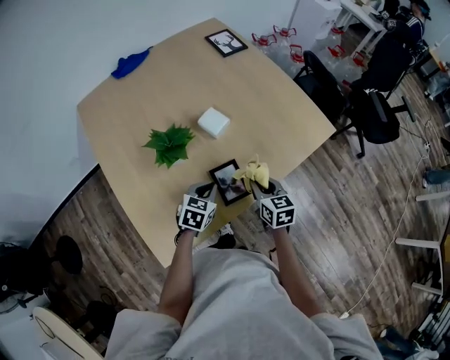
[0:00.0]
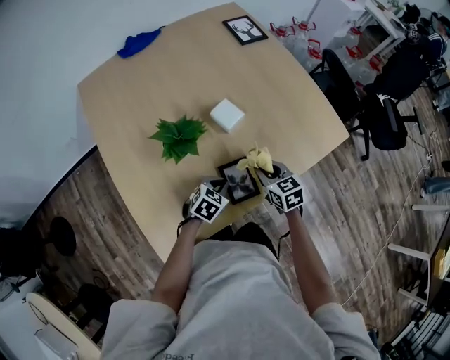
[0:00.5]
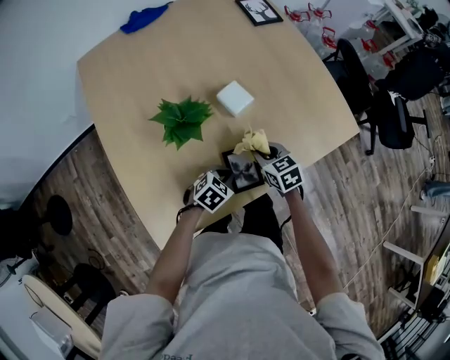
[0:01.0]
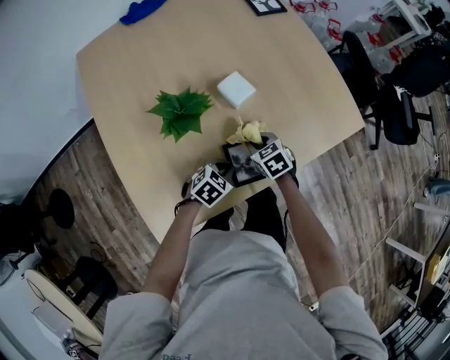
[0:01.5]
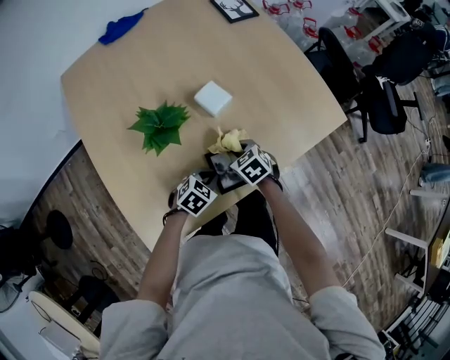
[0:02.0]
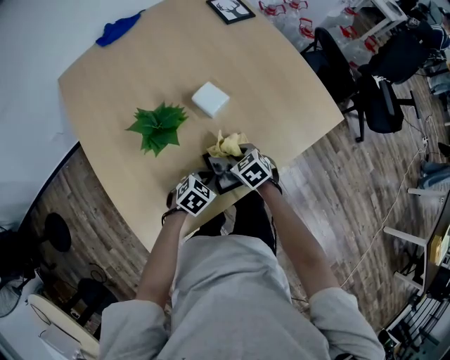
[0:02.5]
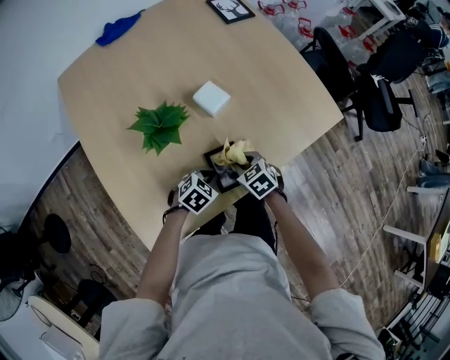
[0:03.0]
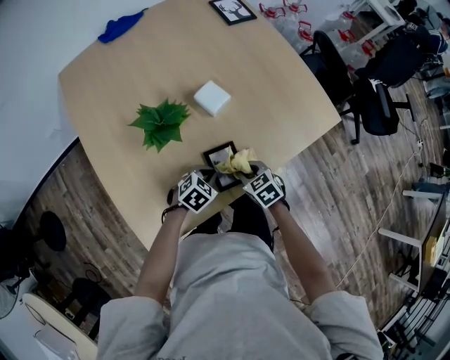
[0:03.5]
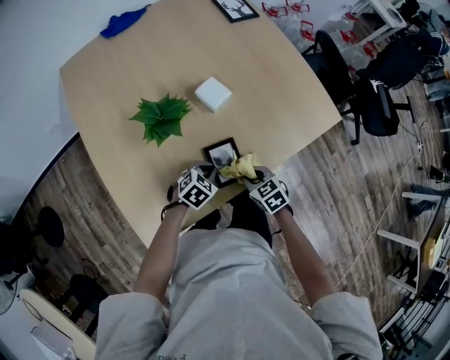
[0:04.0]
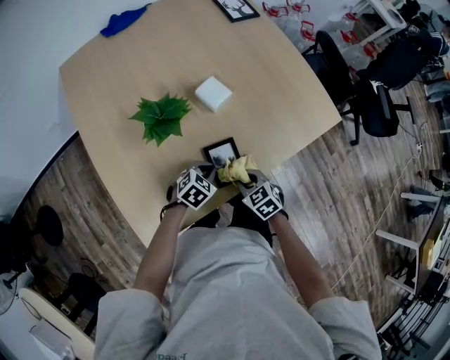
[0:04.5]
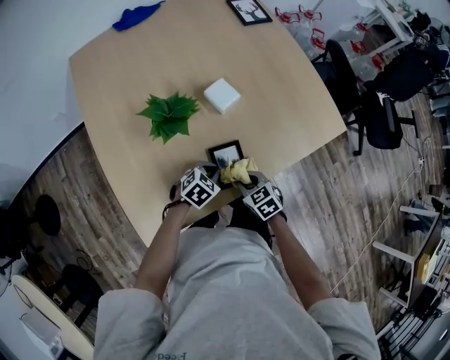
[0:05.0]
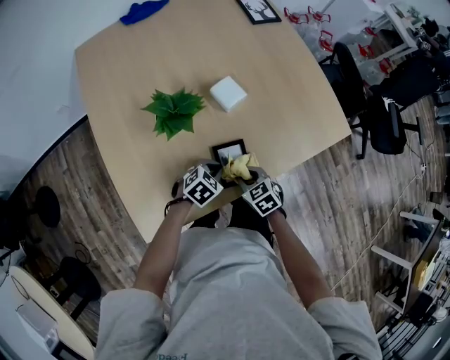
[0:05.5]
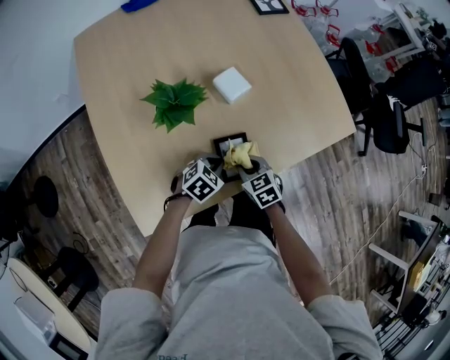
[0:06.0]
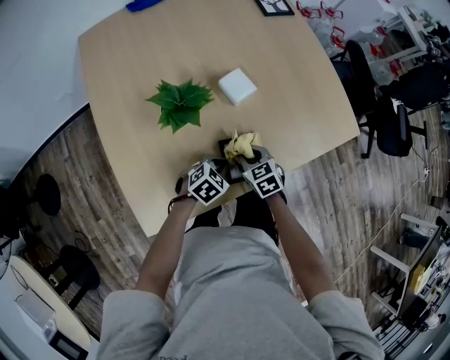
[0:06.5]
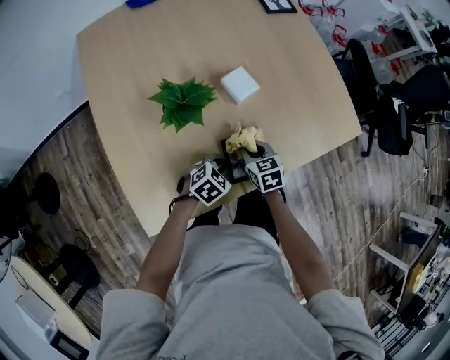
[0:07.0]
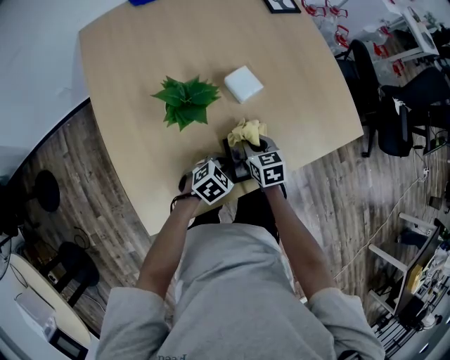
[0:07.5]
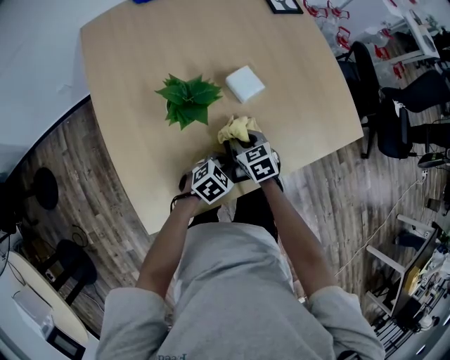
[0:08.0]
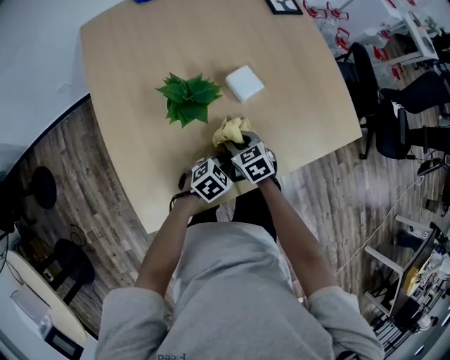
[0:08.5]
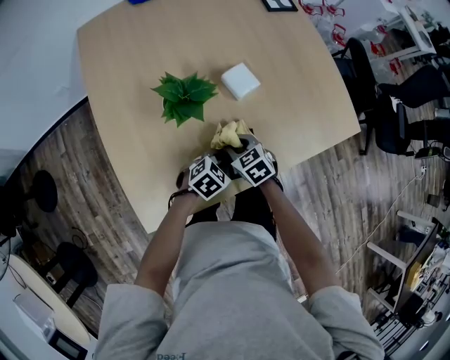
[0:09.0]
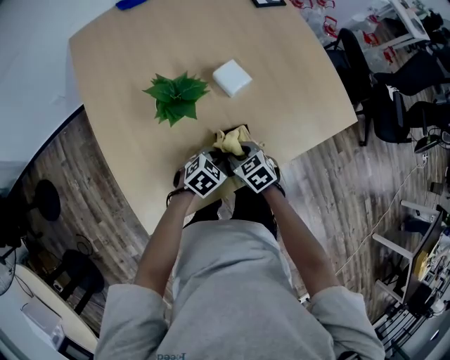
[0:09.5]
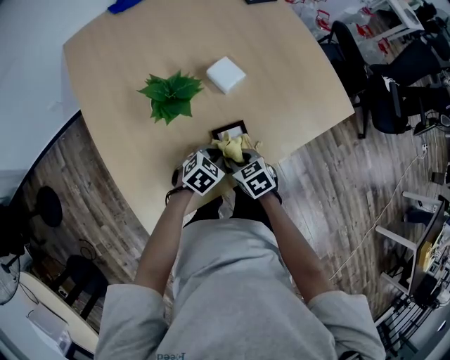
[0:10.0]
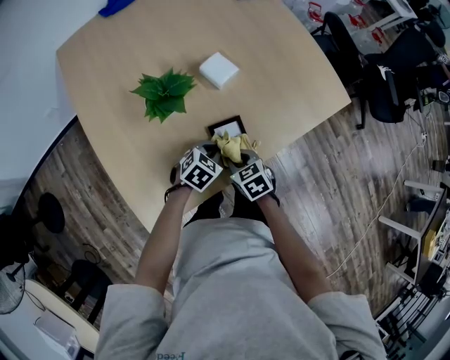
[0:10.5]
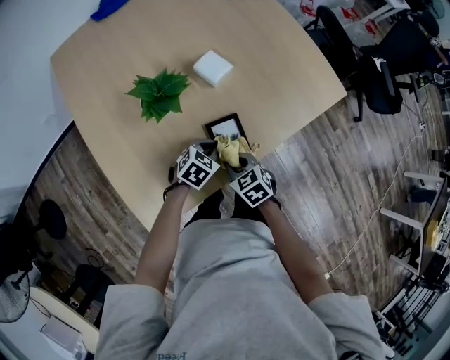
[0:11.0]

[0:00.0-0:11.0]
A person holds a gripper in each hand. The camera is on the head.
0:00.0 to 0:02.0: The right gripper is displaced downward, to the left and forward by about 15 cm, and turns by some 40 degrees, while the left gripper travels downward by about 10 cm, and swivels about 20 degrees.
0:02.0 to 0:03.5: The right gripper heads backward, covering about 5 cm.
0:03.5 to 0:05.5: There are only small adjustments of the grippers.
0:05.5 to 0:07.5: The right gripper travels forward by approximately 10 cm.
0:07.5 to 0:09.0: The right gripper ends up approximately 5 cm from where it was, and turns by roughly 20 degrees.
0:09.0 to 0:11.0: The right gripper moves backward, some 10 cm.

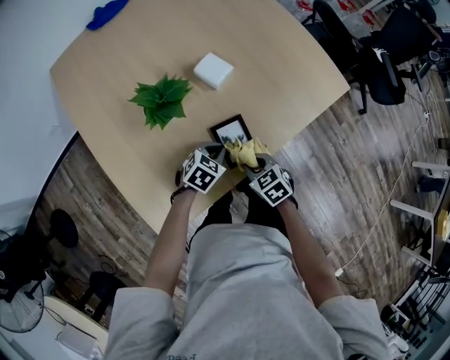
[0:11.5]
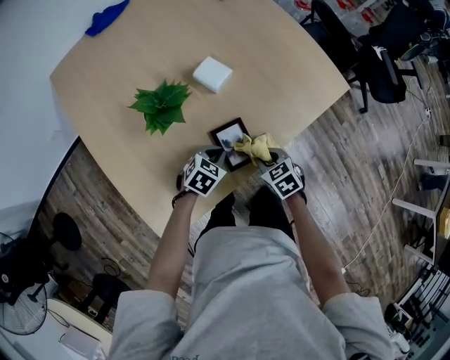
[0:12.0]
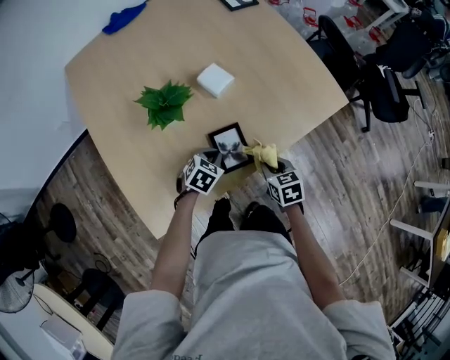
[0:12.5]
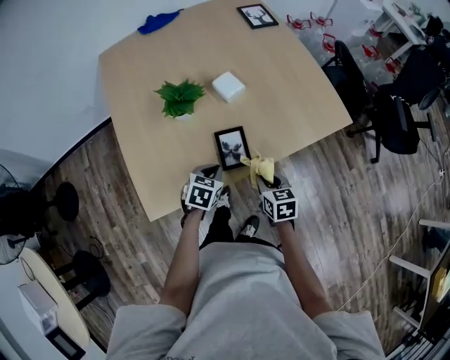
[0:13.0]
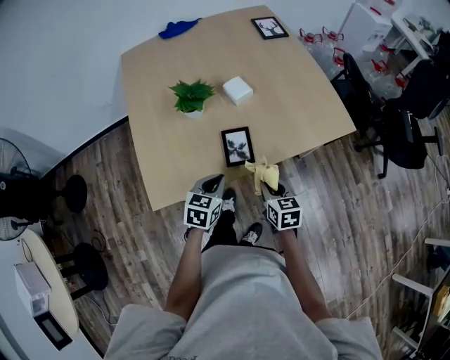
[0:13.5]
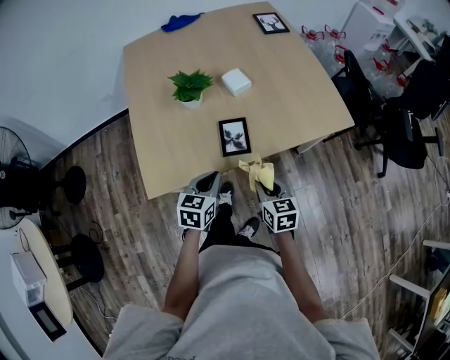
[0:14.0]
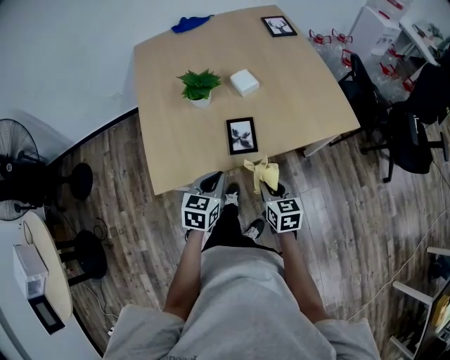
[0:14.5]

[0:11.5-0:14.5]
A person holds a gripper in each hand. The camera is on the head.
0:11.5 to 0:13.0: The right gripper is displaced to the right and upward by about 10 cm, and swivels approximately 20 degrees; the left gripper moves backward and upward, roughly 10 cm, and turns by about 30 degrees.
0:13.0 to 0:14.5: The left gripper moves backward and upward, some 15 cm, and rotates some 20 degrees. Meanwhile the right gripper goes about 10 cm backward.

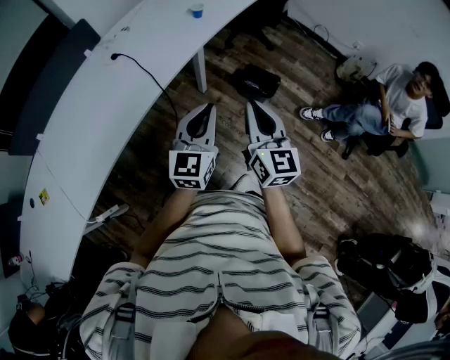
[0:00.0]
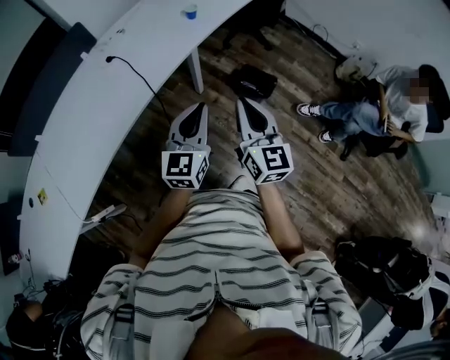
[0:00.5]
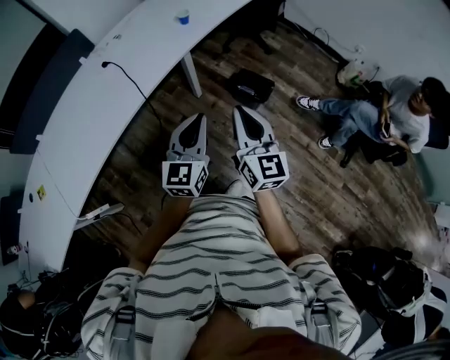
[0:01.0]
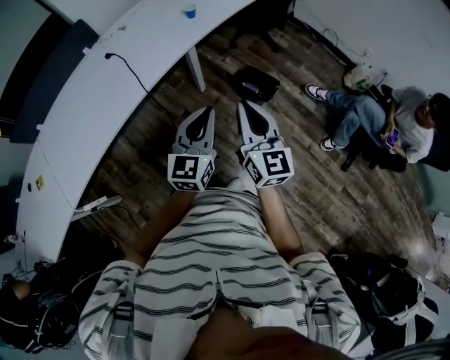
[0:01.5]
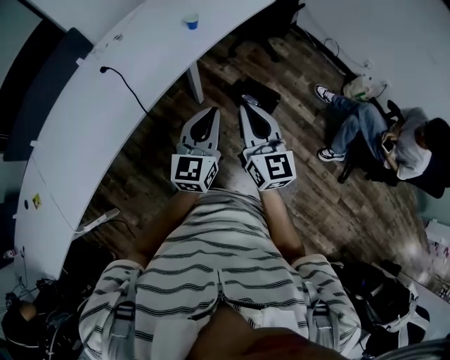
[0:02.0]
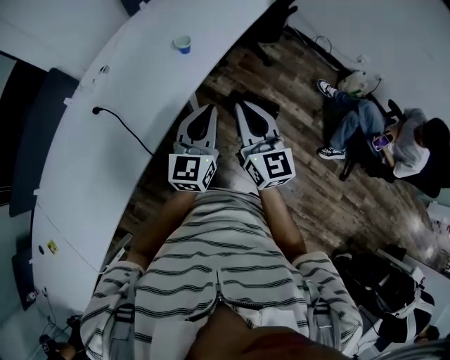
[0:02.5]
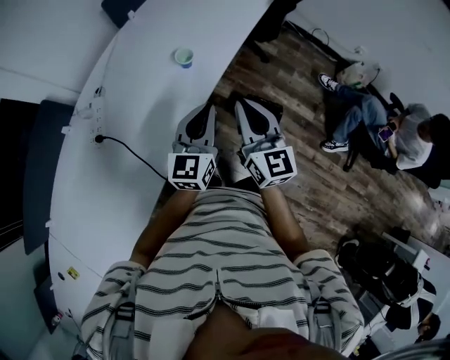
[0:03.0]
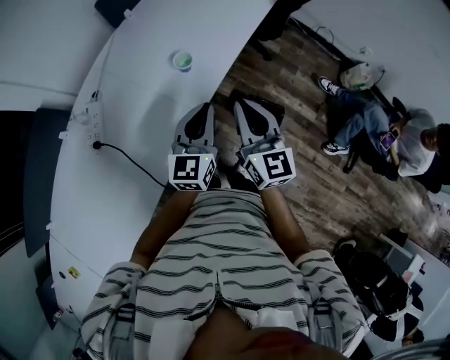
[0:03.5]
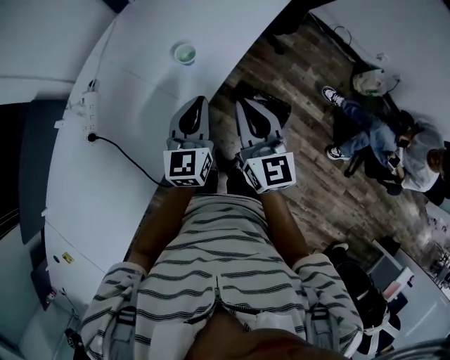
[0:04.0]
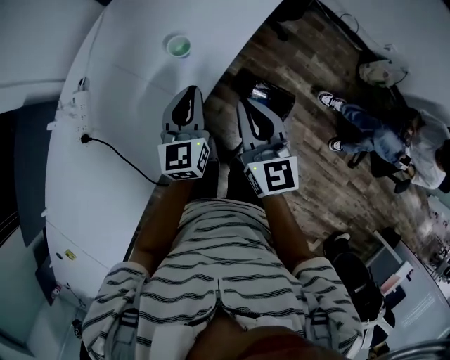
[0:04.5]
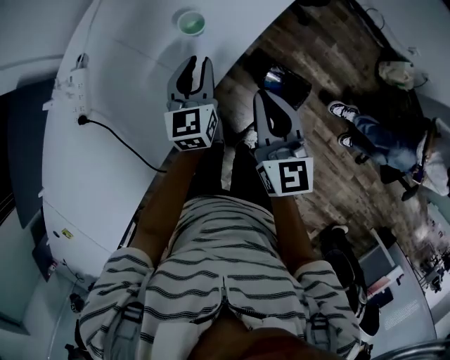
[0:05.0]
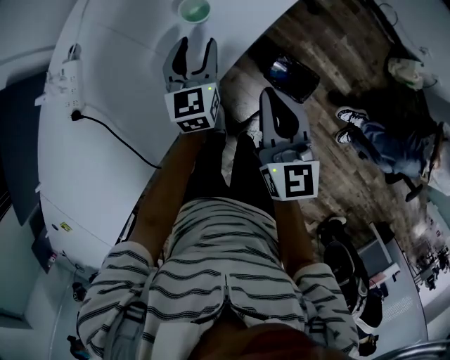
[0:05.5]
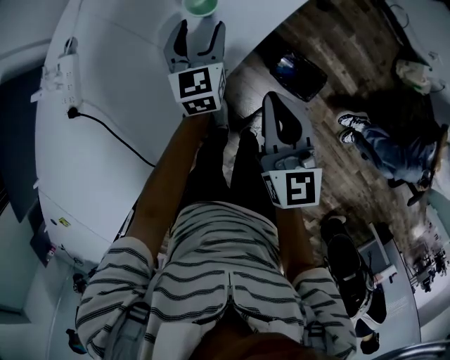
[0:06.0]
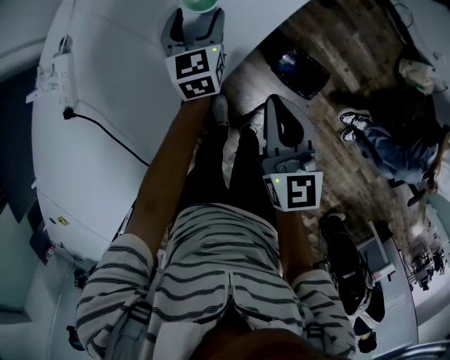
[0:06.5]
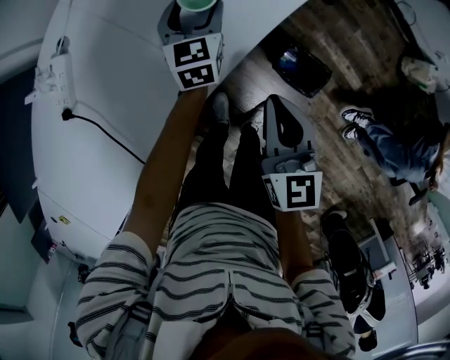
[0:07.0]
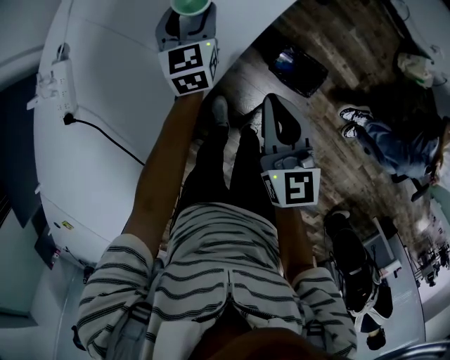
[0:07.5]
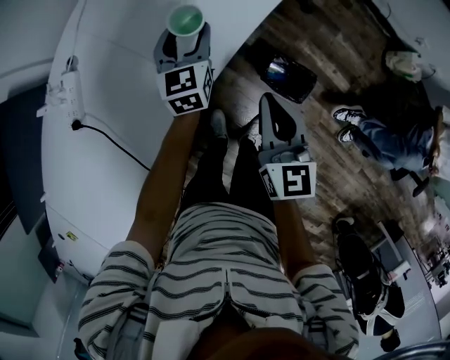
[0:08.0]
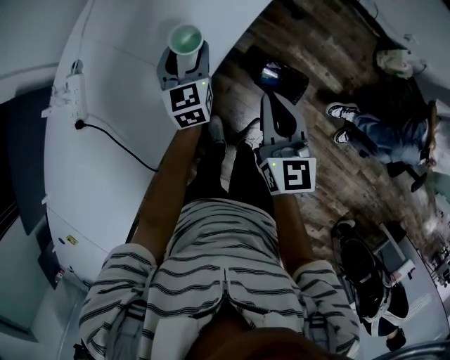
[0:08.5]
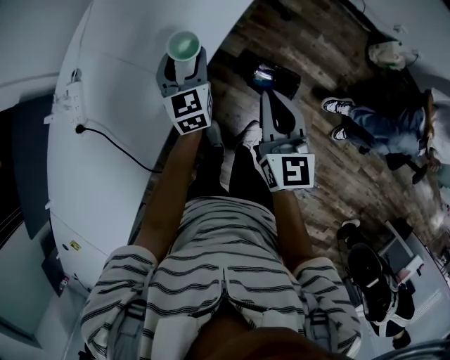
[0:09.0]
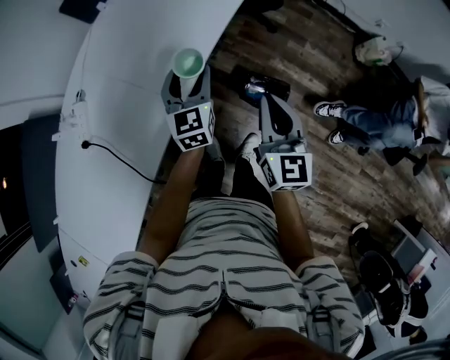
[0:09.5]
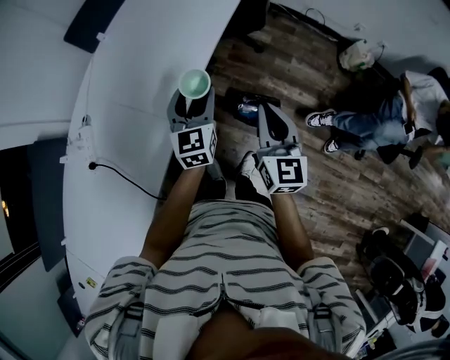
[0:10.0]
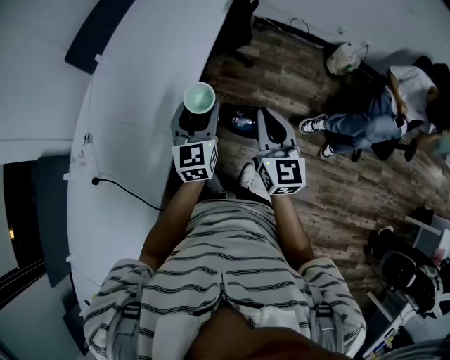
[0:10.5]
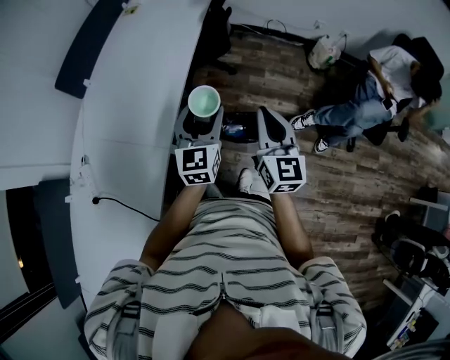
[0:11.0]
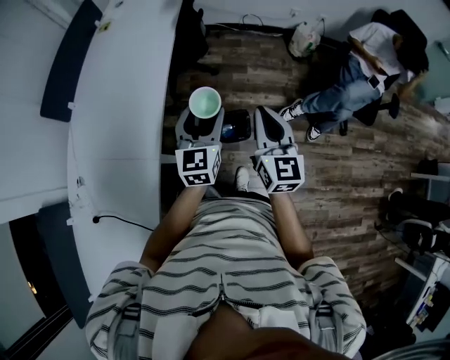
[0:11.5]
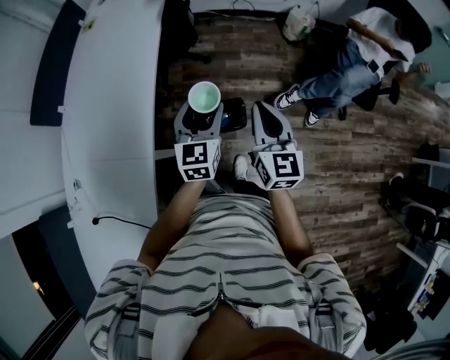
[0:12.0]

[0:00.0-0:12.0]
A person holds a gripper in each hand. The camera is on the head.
0:00.0 to 0:02.0: The two grippers go approximately 15 cm forward and to the right.
0:02.0 to 0:04.0: The two grippers go roughly 35 cm forward.
0:04.0 to 0:06.0: The right gripper heads downward, covering about 15 cm. Meanwhile the left gripper moves downward and forward, roughly 25 cm, and opens up.
0:06.0 to 0:08.0: There are only small adjustments of the grippers.
0:08.0 to 0:10.0: The left gripper heads upward, to the right and backward, covering approximately 25 cm, while the right gripper travels to the right, upward and backward by about 20 cm.
0:10.0 to 0:12.0: Both grippers move to the right, approximately 15 cm. The left gripper turns by roughly 30 degrees; the right gripper changes its angle by about 20 degrees.

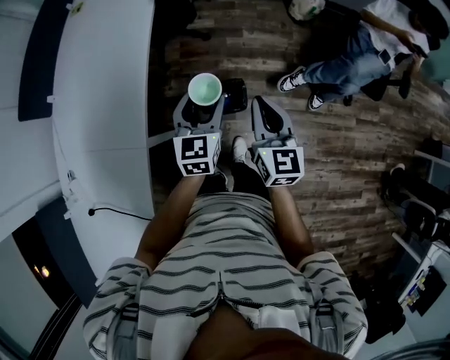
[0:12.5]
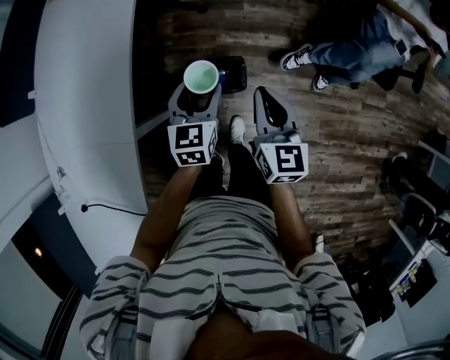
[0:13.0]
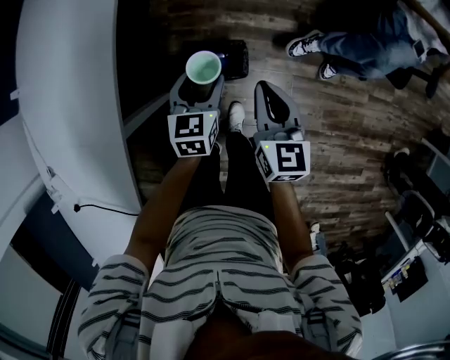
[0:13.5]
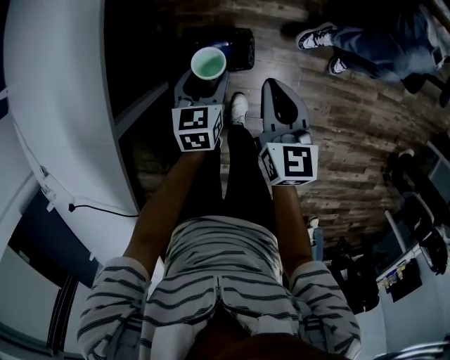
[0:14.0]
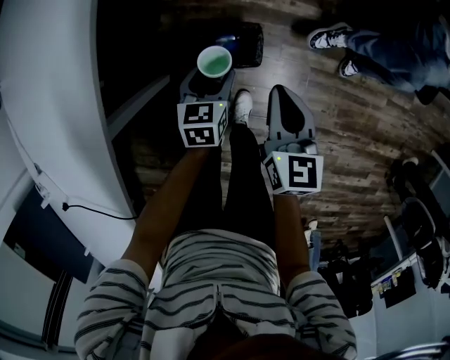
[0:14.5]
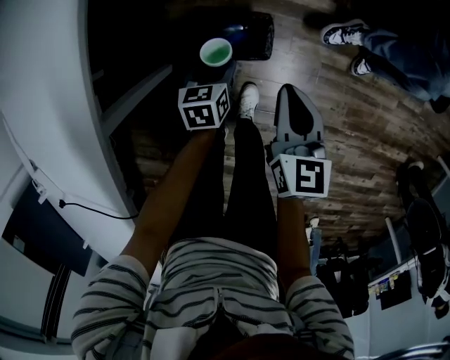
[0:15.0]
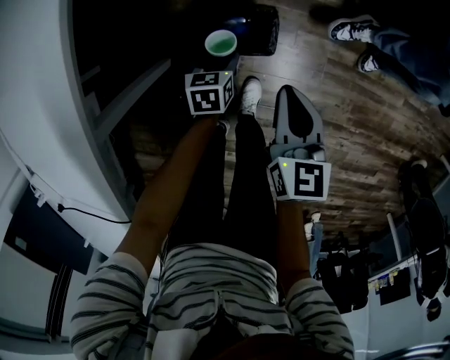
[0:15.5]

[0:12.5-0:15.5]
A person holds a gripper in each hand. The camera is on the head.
0:12.5 to 0:14.0: Both grippers travel together downward, about 20 cm. The left gripper rotates roughly 20 degrees.
0:14.0 to 0:15.5: The left gripper moves downward, approximately 20 cm. Meanwhile the right gripper moves downward, some 10 cm.
